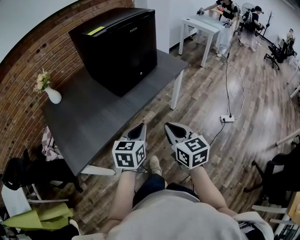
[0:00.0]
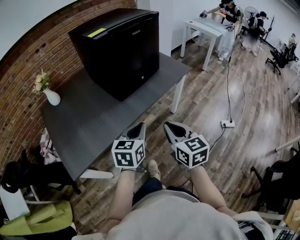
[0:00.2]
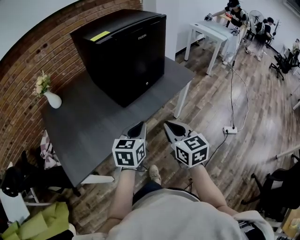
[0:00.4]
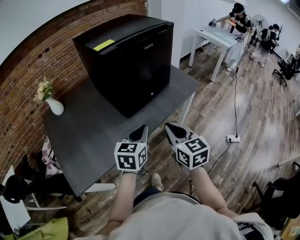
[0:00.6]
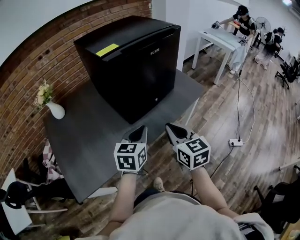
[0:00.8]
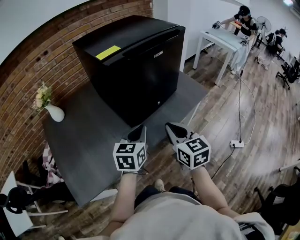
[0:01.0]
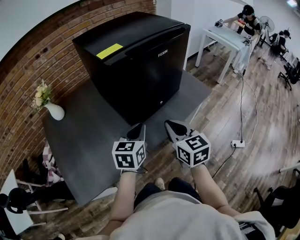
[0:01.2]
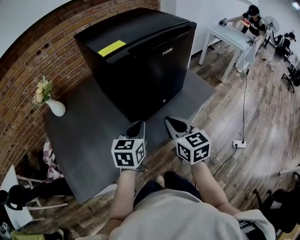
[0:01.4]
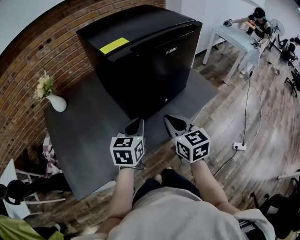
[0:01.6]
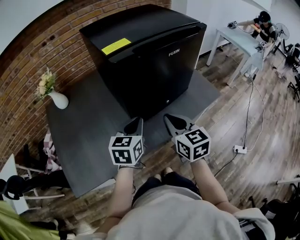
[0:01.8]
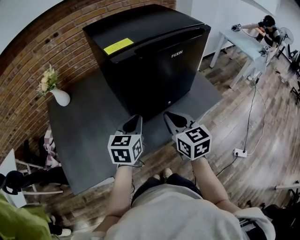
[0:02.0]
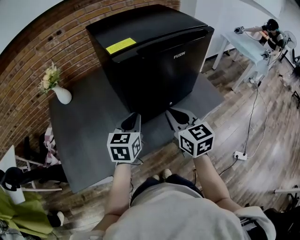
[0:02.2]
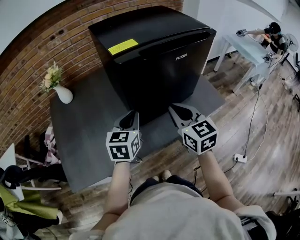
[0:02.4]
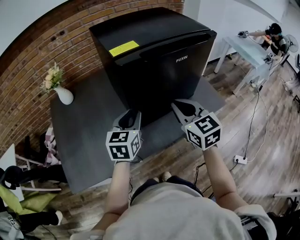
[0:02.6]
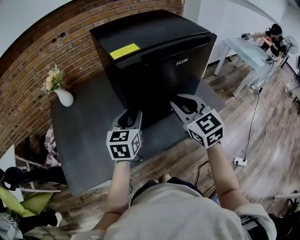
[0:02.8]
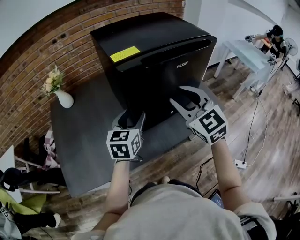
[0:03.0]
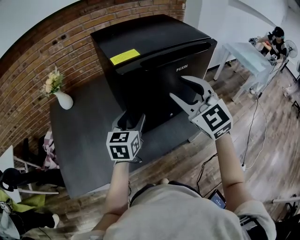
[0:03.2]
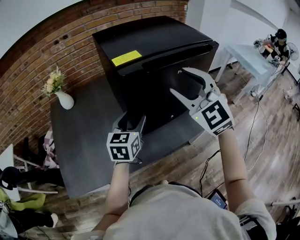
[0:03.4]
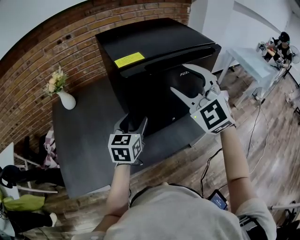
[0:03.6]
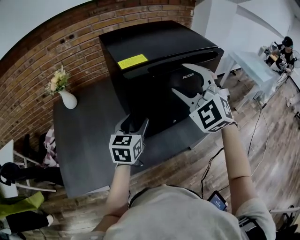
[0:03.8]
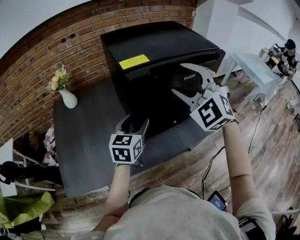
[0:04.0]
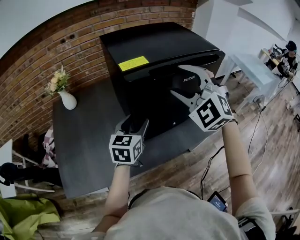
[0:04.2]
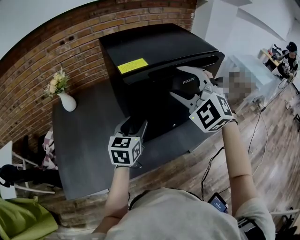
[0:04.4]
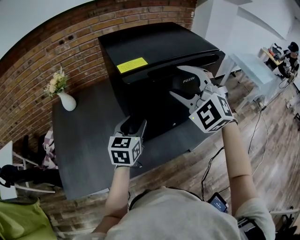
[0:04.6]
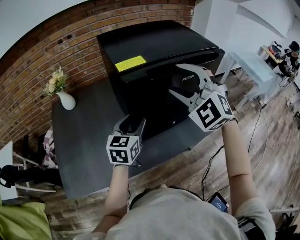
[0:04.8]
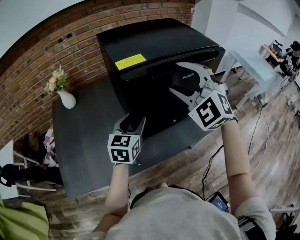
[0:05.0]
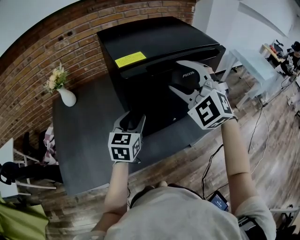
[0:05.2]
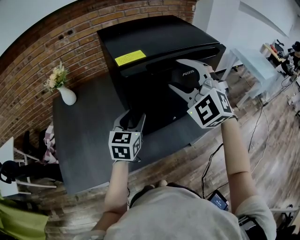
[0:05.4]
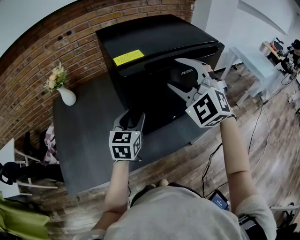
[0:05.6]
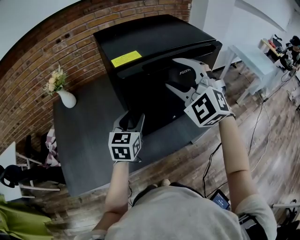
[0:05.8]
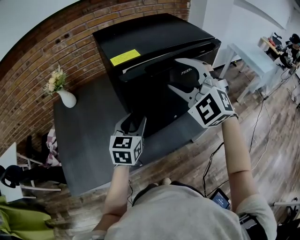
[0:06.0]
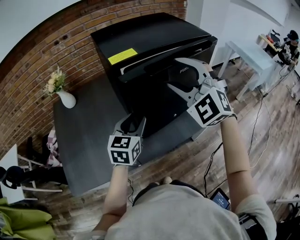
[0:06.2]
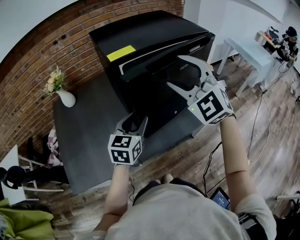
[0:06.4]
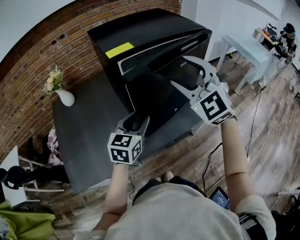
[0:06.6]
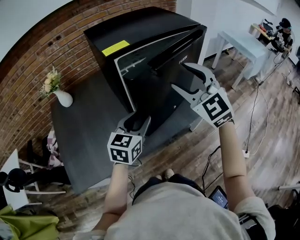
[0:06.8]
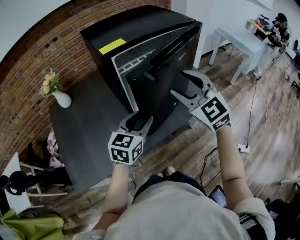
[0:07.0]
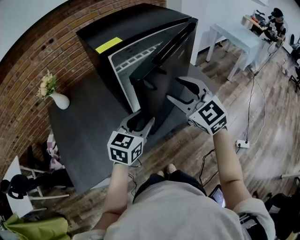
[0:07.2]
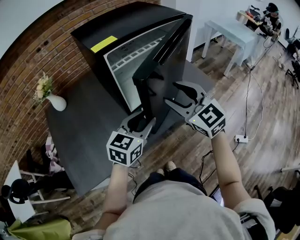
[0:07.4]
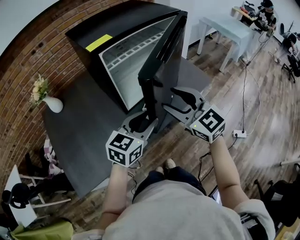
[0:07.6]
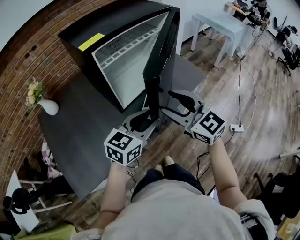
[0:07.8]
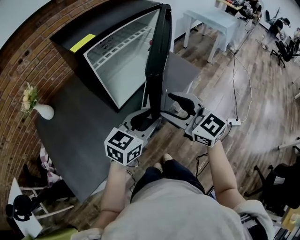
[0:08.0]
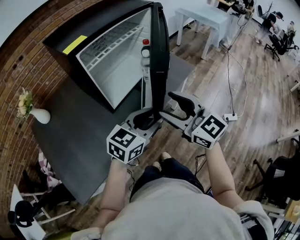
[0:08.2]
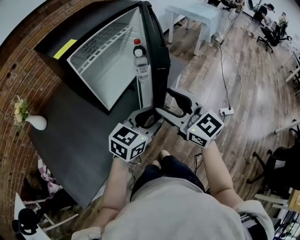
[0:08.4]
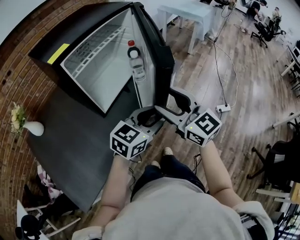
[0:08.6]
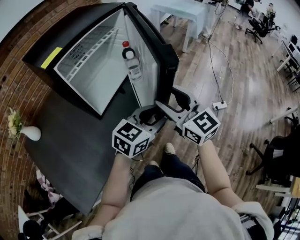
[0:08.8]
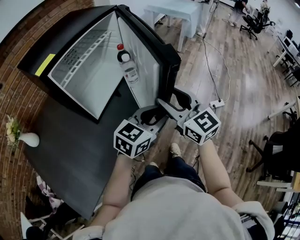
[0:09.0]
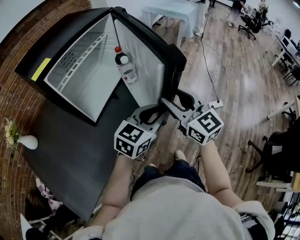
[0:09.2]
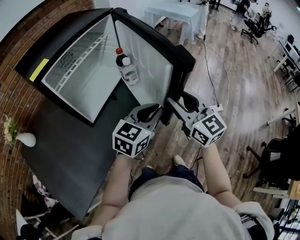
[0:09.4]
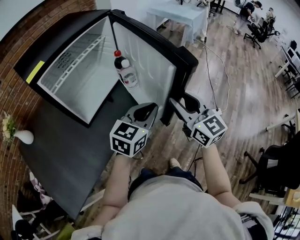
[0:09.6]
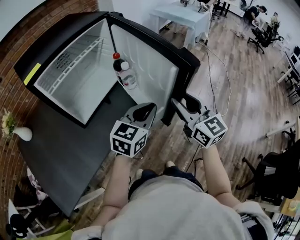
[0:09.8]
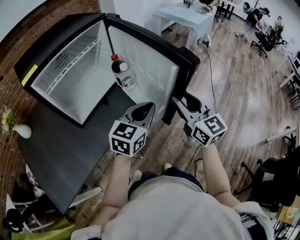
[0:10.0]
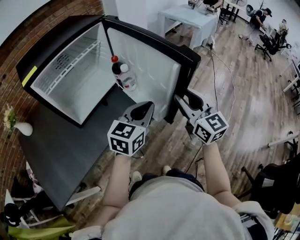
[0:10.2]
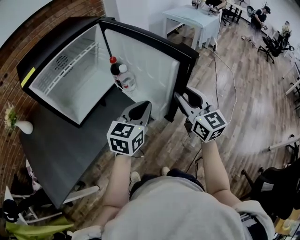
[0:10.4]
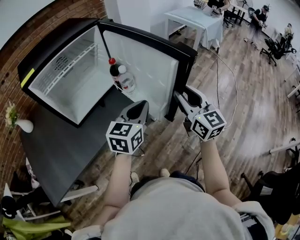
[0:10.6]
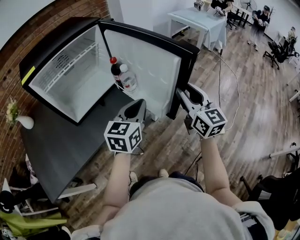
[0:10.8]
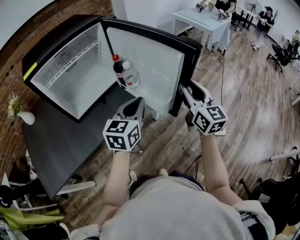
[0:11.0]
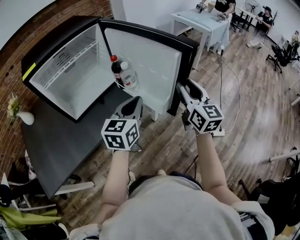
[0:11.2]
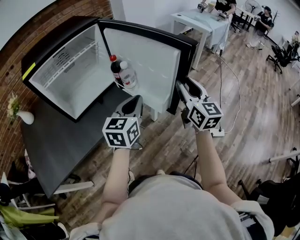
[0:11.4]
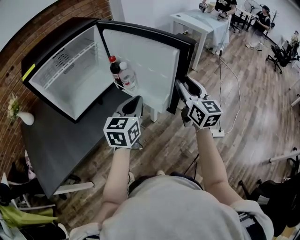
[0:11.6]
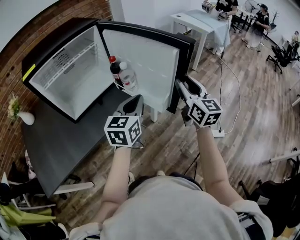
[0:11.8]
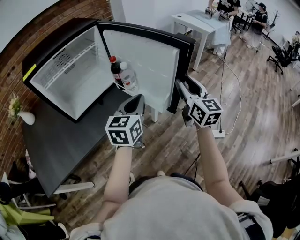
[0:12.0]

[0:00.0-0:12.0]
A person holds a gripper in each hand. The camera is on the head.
0:00.0 to 0:01.6: The grippers both shift forward by some 30 cm.
0:01.6 to 0:03.0: The right gripper heads upward and forward, covering some 15 cm, turns by about 40 degrees, and opens. The left gripper is displaced forward by approximately 5 cm, and opens.
0:03.0 to 0:04.4: The right gripper shifts roughly 10 cm upward and forward, rotates roughly 40 degrees, and opens.
0:04.4 to 0:06.0: The grippers move only a little.
0:06.0 to 0:07.6: The left gripper travels backward and to the right by some 15 cm, and rotates approximately 30 degrees. The right gripper travels backward and downward by roughly 15 cm, and twists about 50 degrees clockwise, seen from behind.
0:07.6 to 0:09.0: The right gripper shifts by about 15 cm, and swivels roughly 30 degrees, while the left gripper changes place by roughly 15 cm, and changes its angle by some 30 degrees.
0:09.0 to 0:10.4: The right gripper goes roughly 25 cm to the right and forward; the left gripper is displaced forward and to the right by about 15 cm, rotates approximately 30 degrees, and closes.
0:10.4 to 0:12.0: The right gripper shifts about 10 cm forward and to the right.

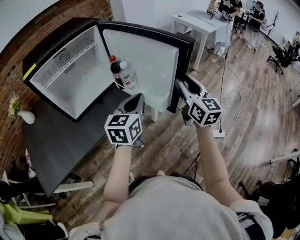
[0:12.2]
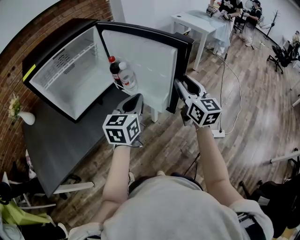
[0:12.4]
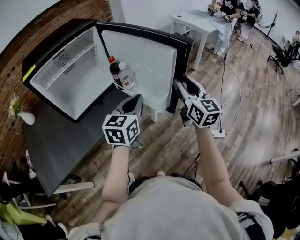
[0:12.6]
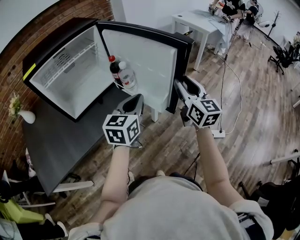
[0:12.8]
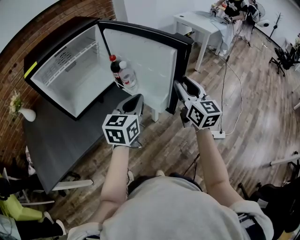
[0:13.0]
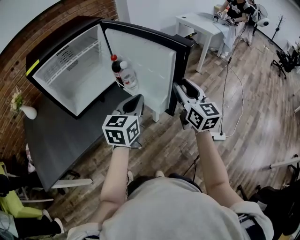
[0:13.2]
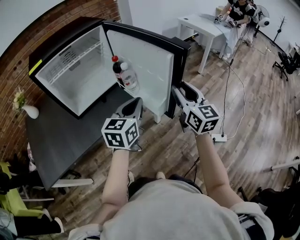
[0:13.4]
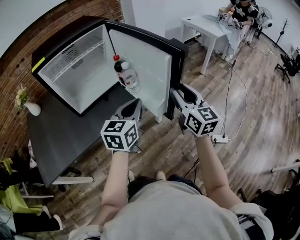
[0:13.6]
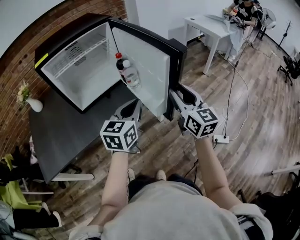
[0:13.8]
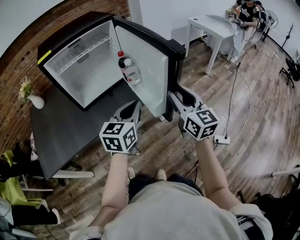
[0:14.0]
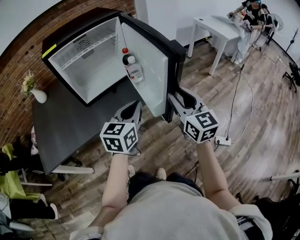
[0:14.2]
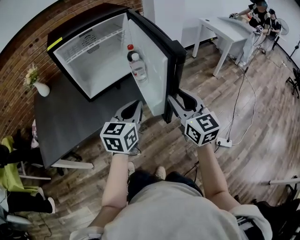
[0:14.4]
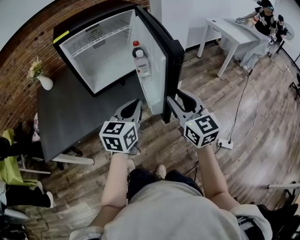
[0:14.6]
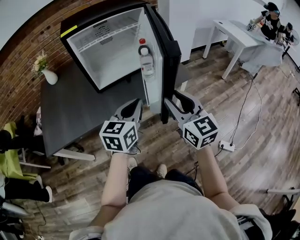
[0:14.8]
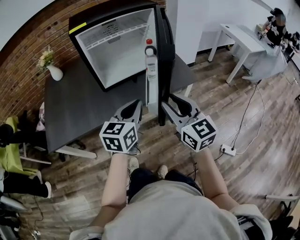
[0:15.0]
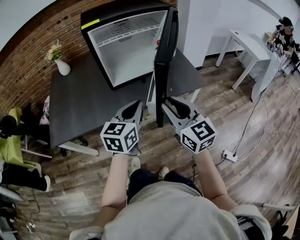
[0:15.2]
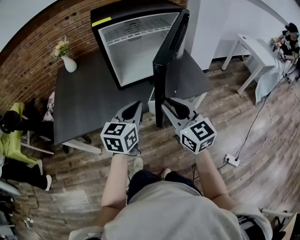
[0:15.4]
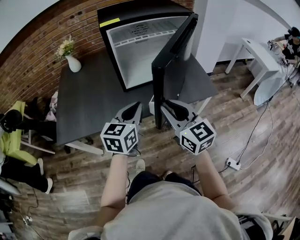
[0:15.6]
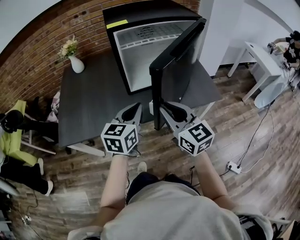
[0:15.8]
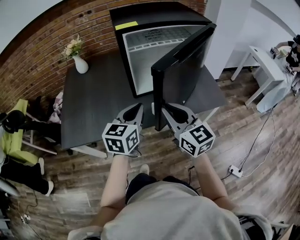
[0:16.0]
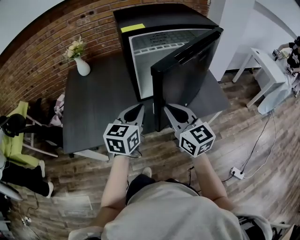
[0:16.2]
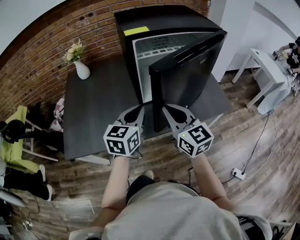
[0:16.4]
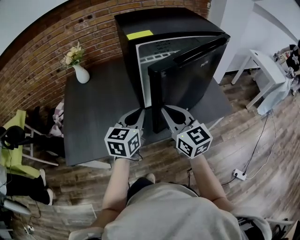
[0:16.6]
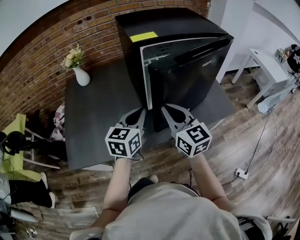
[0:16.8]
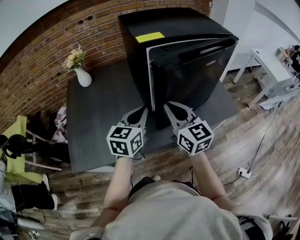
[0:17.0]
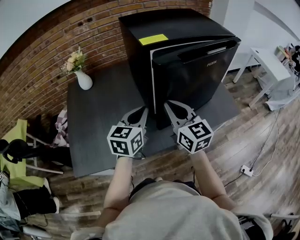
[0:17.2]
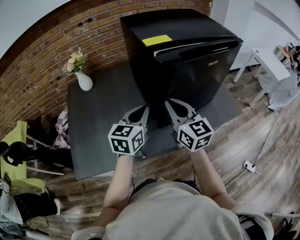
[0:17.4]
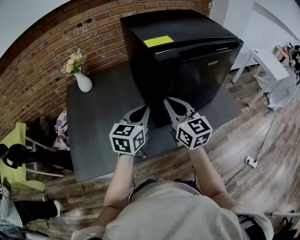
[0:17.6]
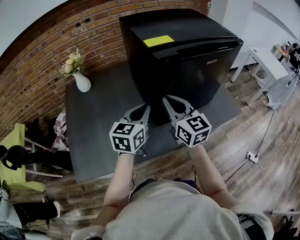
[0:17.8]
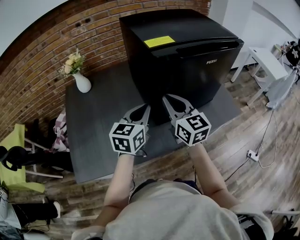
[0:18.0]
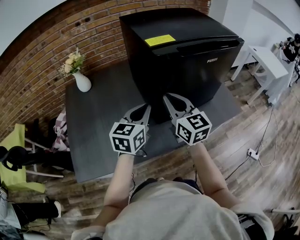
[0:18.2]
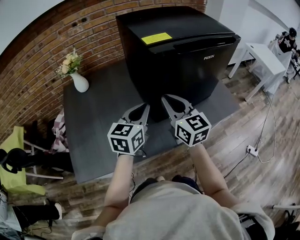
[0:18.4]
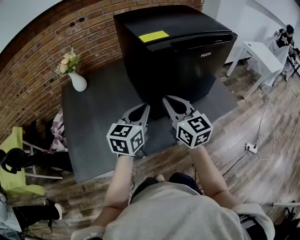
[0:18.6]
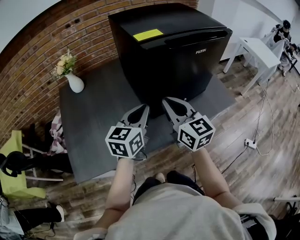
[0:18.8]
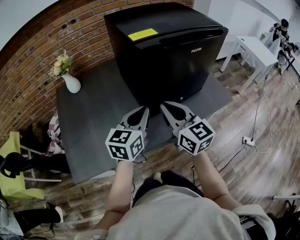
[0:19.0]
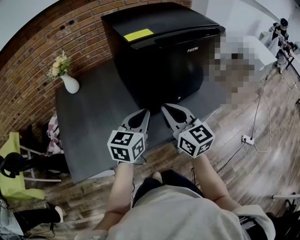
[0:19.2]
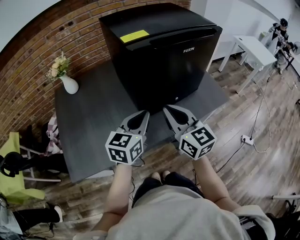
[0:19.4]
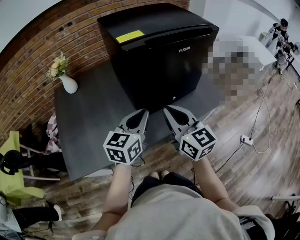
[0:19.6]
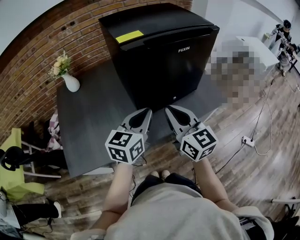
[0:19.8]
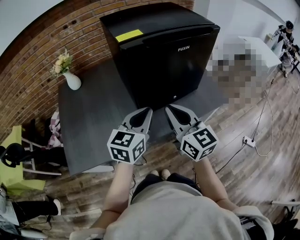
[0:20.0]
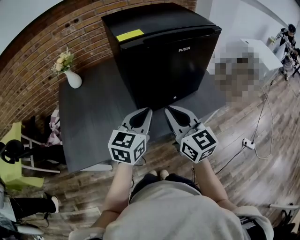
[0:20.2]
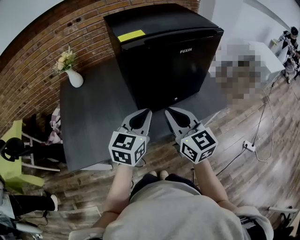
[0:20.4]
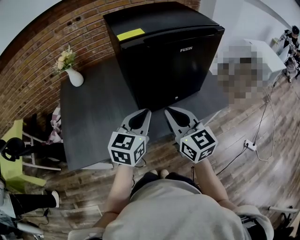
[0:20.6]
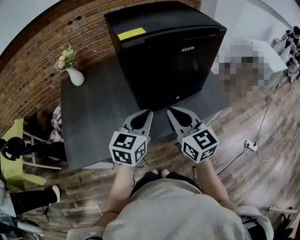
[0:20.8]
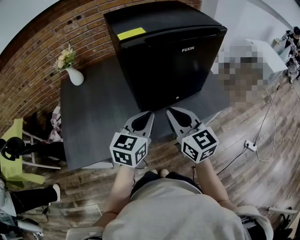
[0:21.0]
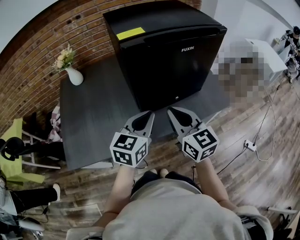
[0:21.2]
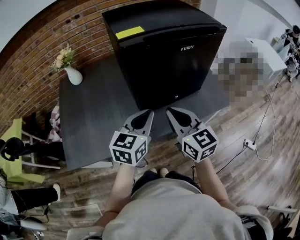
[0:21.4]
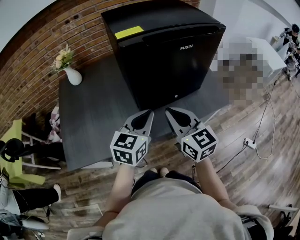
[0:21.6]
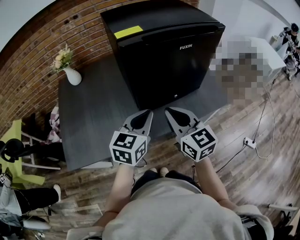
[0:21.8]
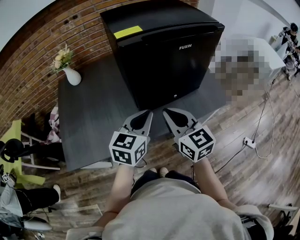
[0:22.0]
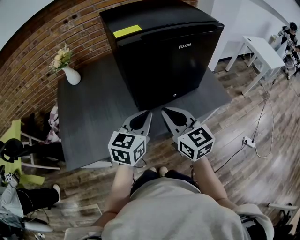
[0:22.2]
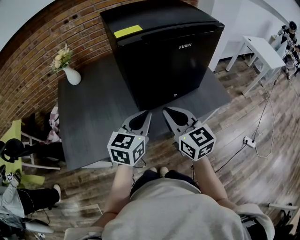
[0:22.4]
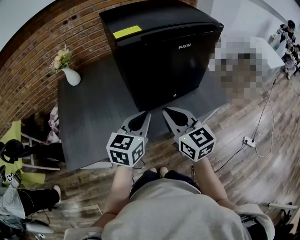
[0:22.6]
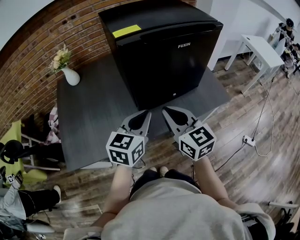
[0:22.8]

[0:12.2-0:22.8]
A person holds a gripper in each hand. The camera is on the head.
0:12.2 to 0:13.8: The right gripper changes place by roughly 5 cm.
0:13.8 to 0:15.2: The grippers both shift to the left by roughly 20 cm. The right gripper rotates approximately 30 degrees.
0:15.2 to 0:16.8: The two grippers go some 30 cm to the left and forward. The right gripper closes.
0:16.8 to 0:18.2: Both grippers travel together forward, roughly 5 cm.
0:18.2 to 0:19.8: The right gripper is displaced backward and to the right by approximately 15 cm, while the left gripper is displaced to the right and backward by approximately 10 cm.
0:19.8 to 0:22.8: There are only small adjustments of the grippers.

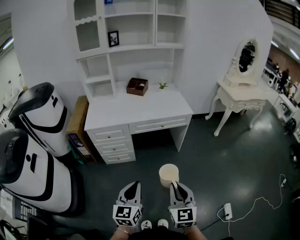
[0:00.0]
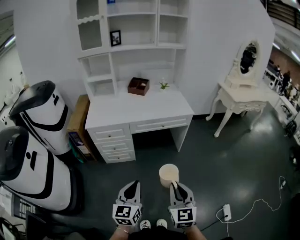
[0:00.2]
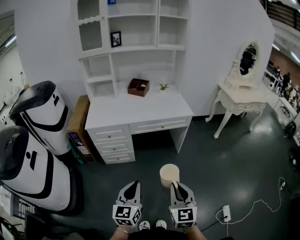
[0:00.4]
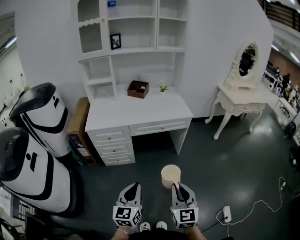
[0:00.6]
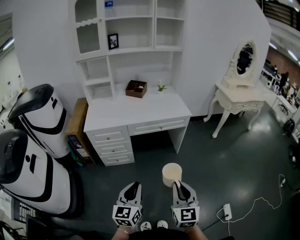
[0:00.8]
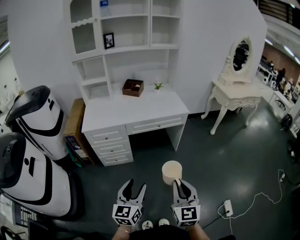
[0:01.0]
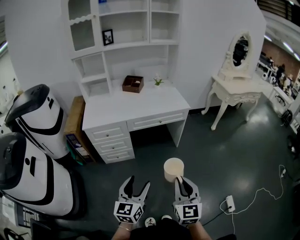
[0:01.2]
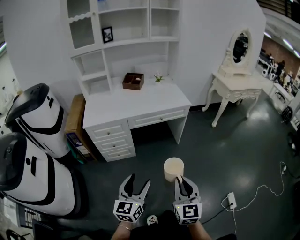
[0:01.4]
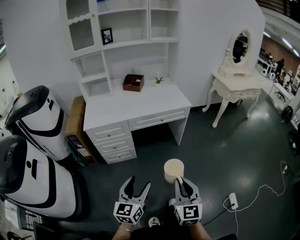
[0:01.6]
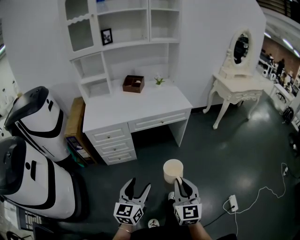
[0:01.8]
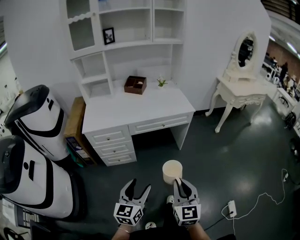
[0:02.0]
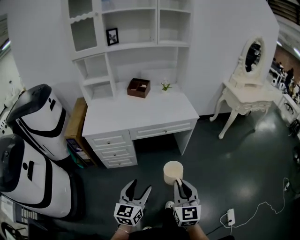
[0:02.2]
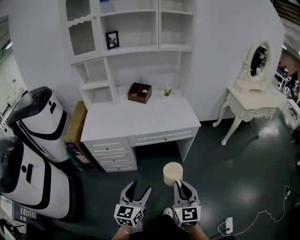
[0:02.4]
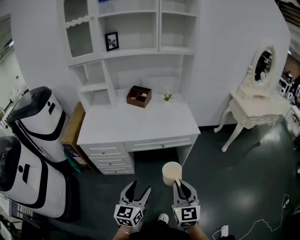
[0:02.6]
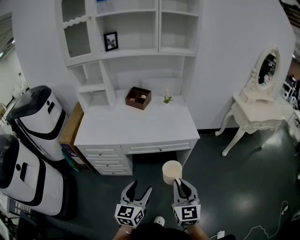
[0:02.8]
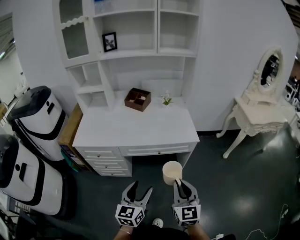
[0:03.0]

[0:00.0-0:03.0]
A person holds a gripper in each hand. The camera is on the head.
0:00.0 to 0:01.6: The left gripper opens its fingers.
0:01.6 to 0:03.0: The left gripper travels forward and to the right by some 30 cm, while the right gripper heads forward, covering some 30 cm.
